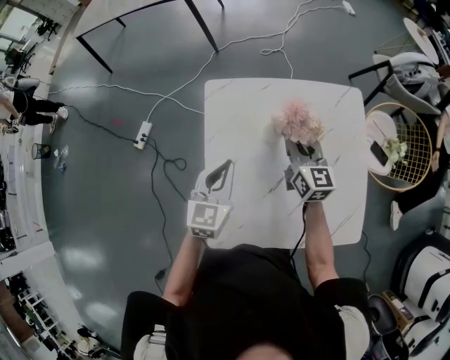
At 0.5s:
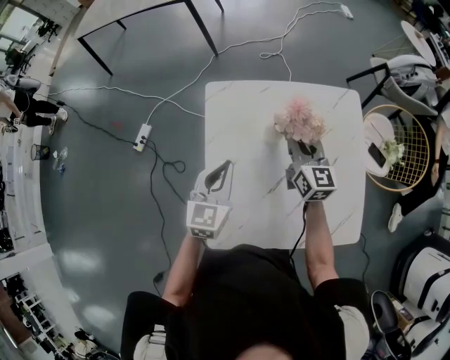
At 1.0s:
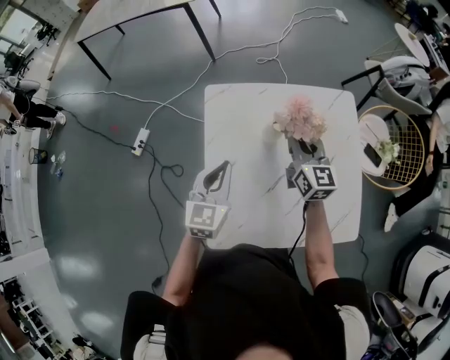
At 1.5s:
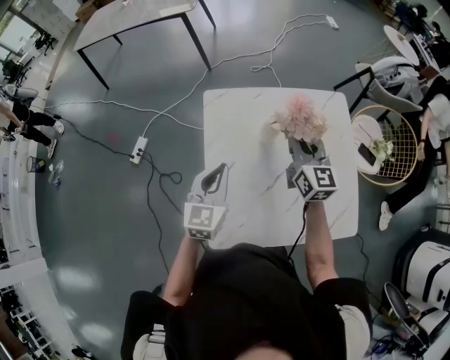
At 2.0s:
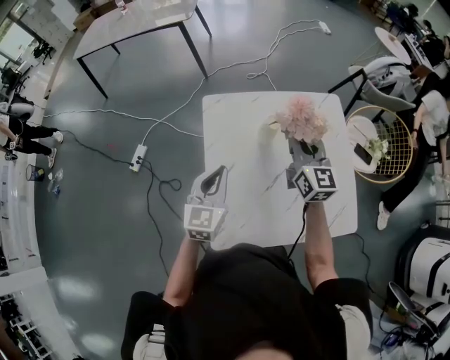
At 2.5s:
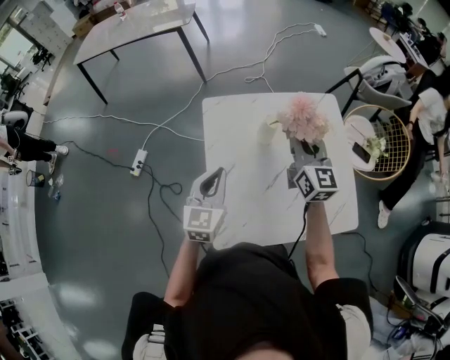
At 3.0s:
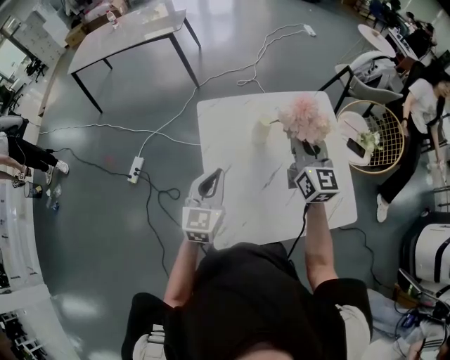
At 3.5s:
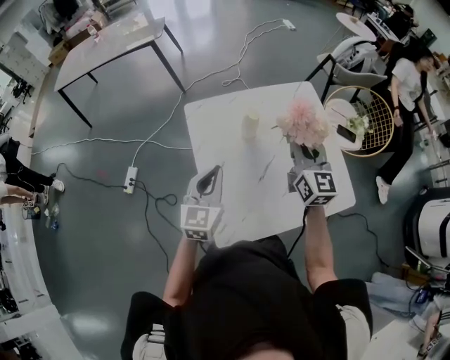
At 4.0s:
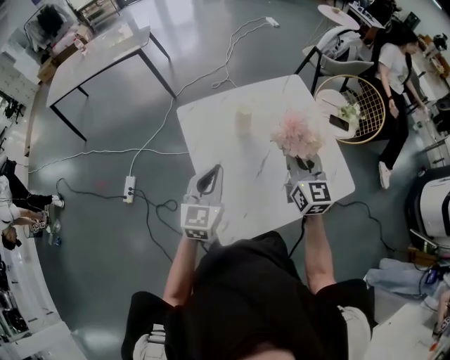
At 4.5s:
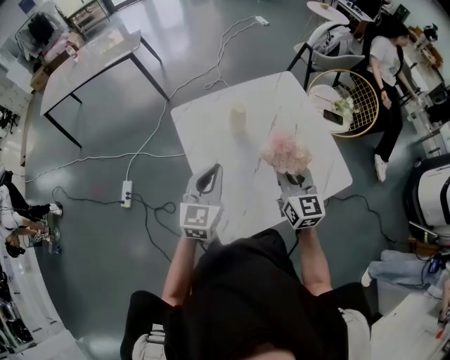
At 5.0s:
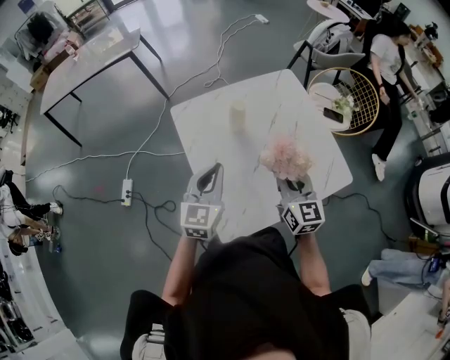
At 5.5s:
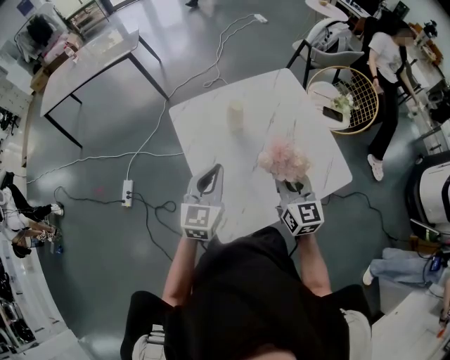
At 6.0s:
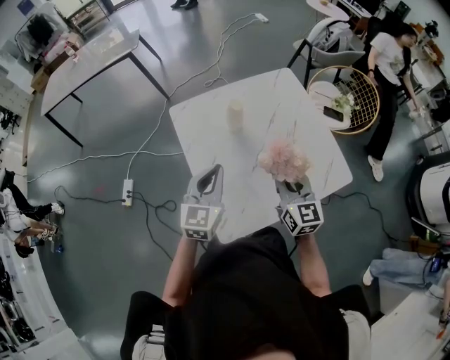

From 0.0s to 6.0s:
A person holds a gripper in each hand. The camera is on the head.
From 0.0s to 2.0s: The right gripper shifts roughly 15 cm upward and backward. The left gripper travels backward by approximately 5 cm.
From 2.0s to 4.0s: The left gripper goes approximately 5 cm backward, while the right gripper travels backward by some 15 cm.
From 4.0s to 6.0s: The right gripper goes roughly 10 cm backward.

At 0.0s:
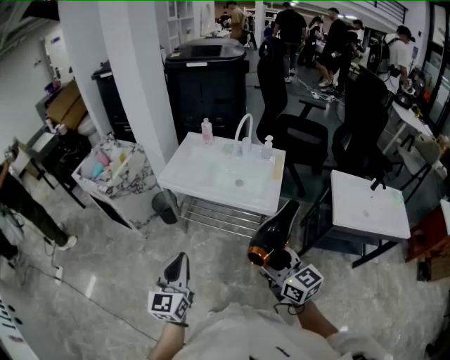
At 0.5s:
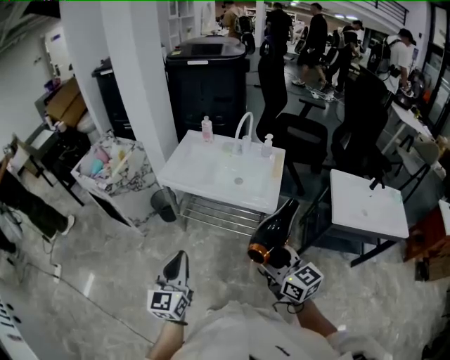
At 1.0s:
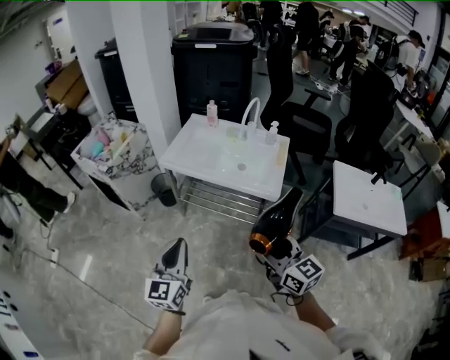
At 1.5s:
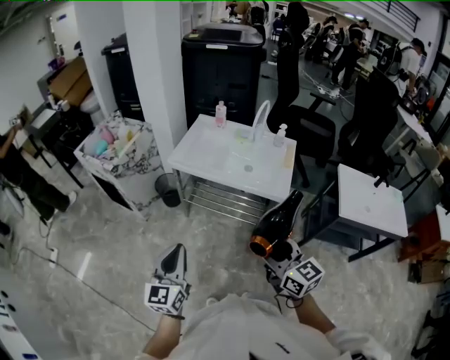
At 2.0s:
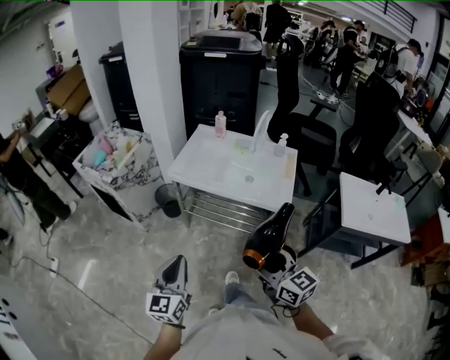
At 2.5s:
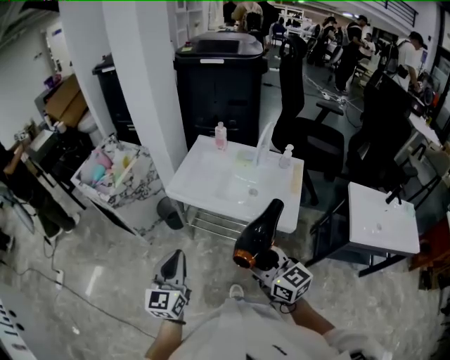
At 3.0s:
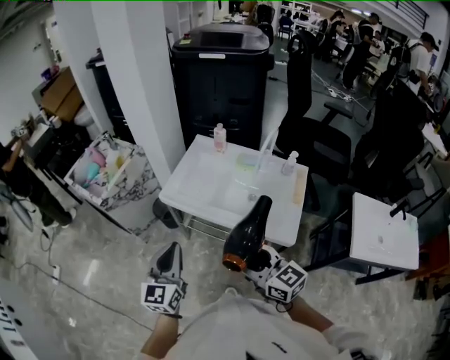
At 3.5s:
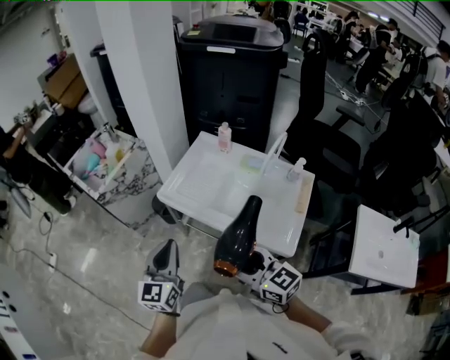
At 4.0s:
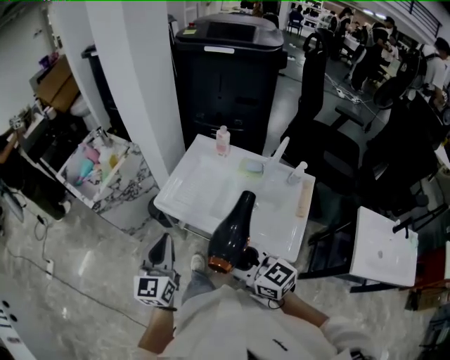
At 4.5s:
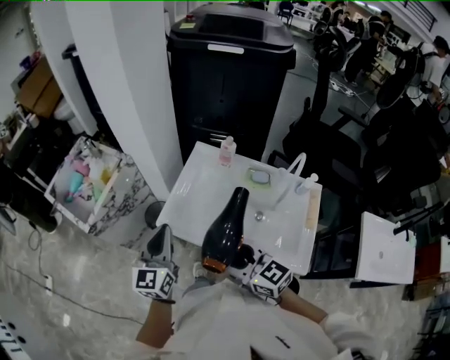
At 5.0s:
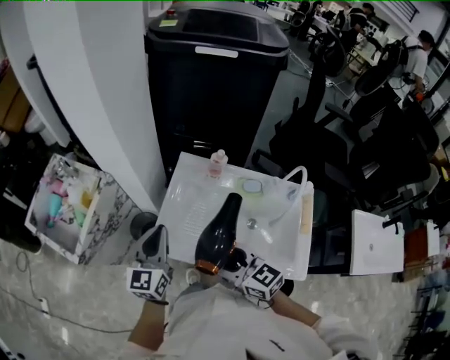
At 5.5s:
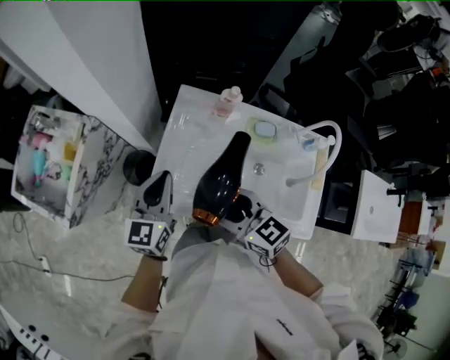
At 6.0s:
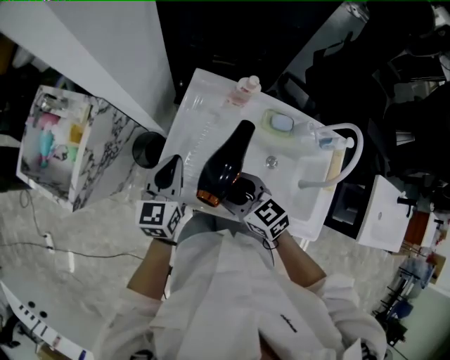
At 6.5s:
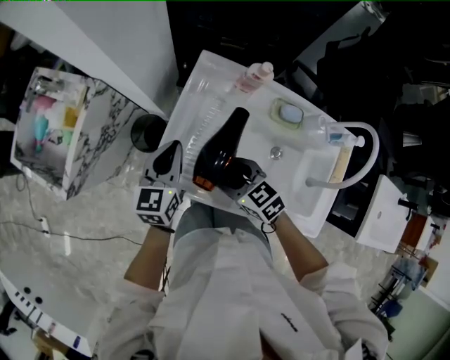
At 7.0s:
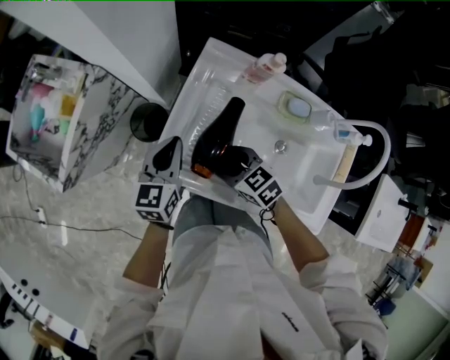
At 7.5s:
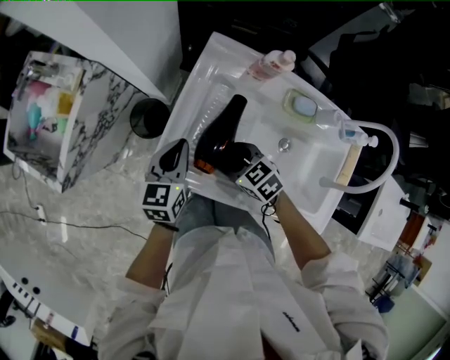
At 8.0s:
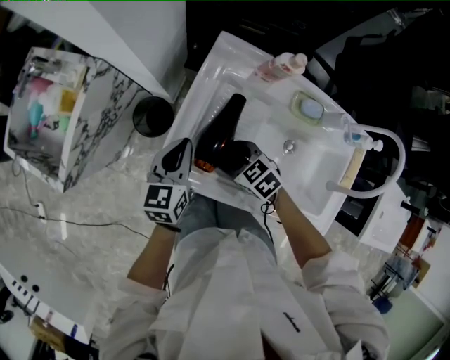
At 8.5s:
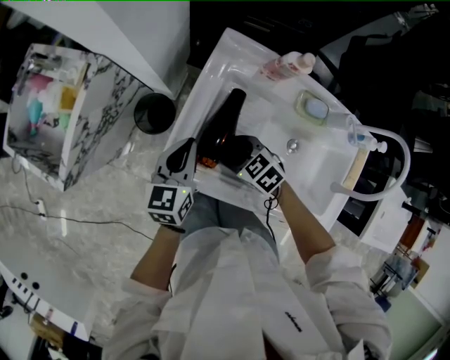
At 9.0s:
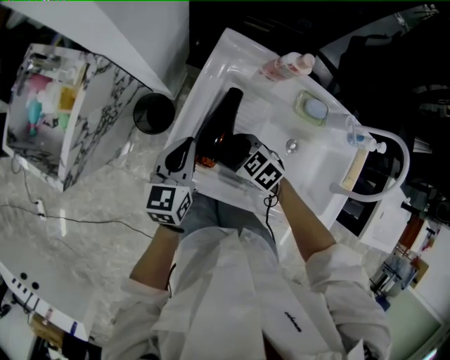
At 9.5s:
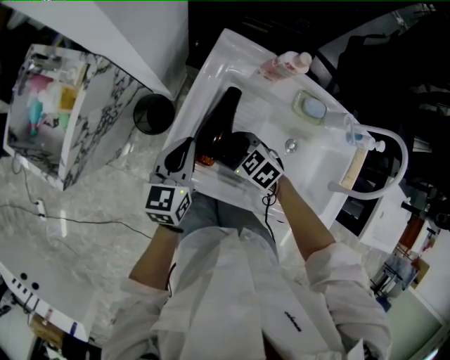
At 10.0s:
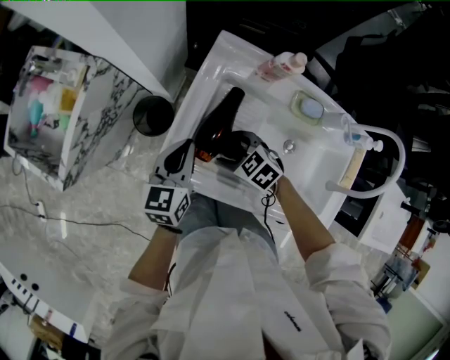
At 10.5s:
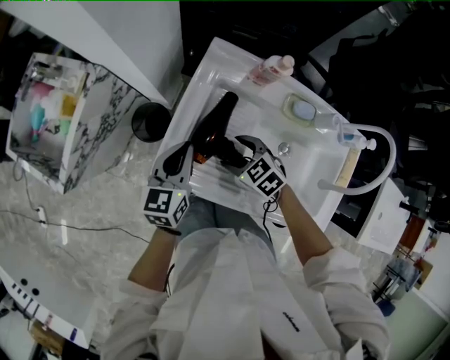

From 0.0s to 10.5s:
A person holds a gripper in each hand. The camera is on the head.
From 0.0s to 2.0s: Both grippers move to the left, approximately 10 cm.
From 2.0s to 4.0s: The grippers both shift forward by roughly 30 cm. The right gripper rotates some 20 degrees.
From 4.0s to 6.5s: Both grippers travel together forward and downward, approximately 40 cm. The right gripper angles its fingers downward, by approximately 30 degrees. Meanwhile the left gripper turns by some 20 degrees.
From 6.5s to 8.5s: The right gripper moves downward, roughly 10 cm; the left gripper shifts about 5 cm downward.
From 8.5s to 10.5s: There are only small adjustments of the grippers.

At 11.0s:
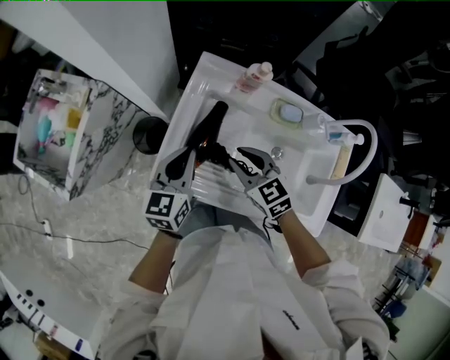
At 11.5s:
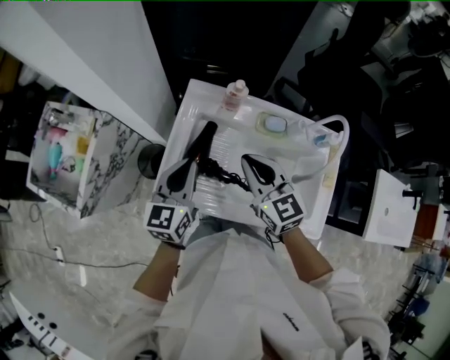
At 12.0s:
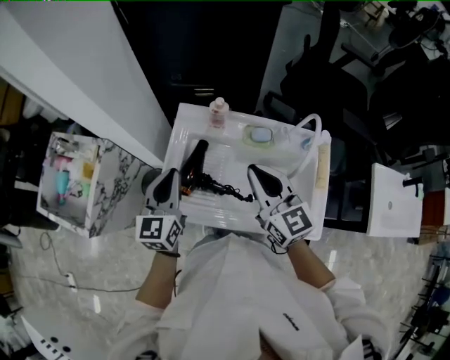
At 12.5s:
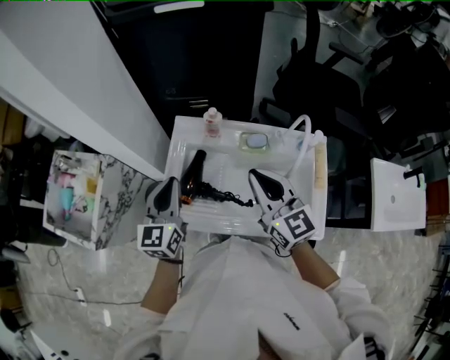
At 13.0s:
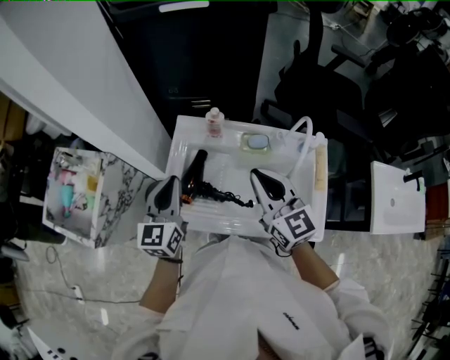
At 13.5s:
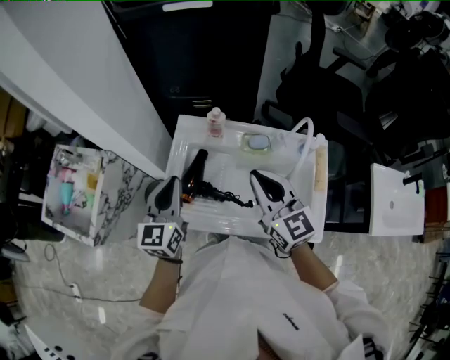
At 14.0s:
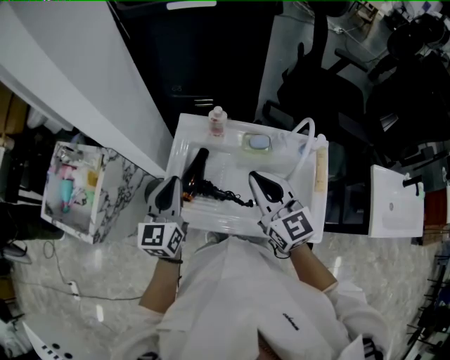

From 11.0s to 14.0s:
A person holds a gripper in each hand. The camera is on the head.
From 11.0s to 12.5s: The left gripper goes roughly 15 cm upward. Meanwhile the right gripper goes roughly 25 cm upward and to the right, and points its fingers some 30 degrees further upward.
From 12.5s to 14.0s: Both grippers stay put.

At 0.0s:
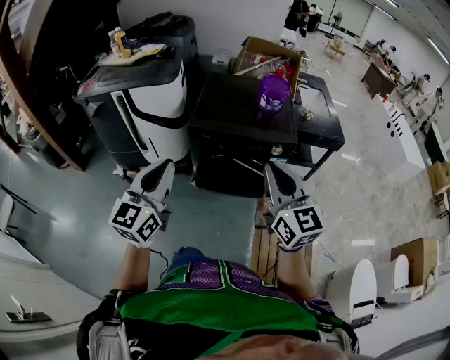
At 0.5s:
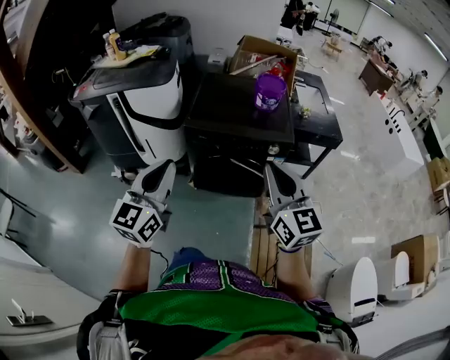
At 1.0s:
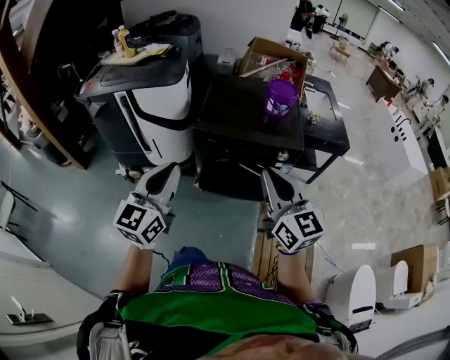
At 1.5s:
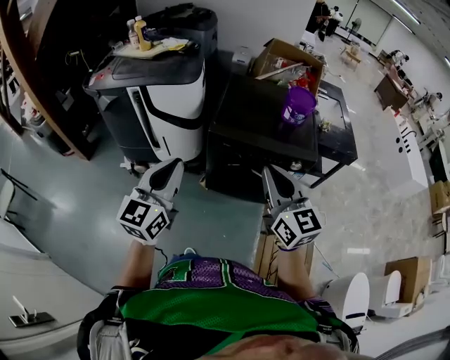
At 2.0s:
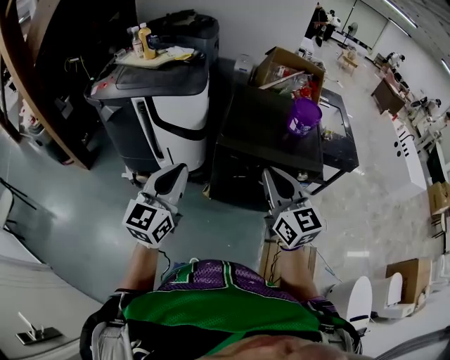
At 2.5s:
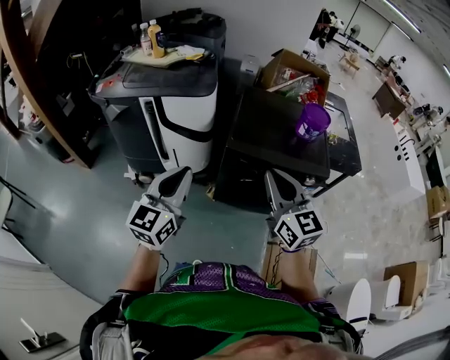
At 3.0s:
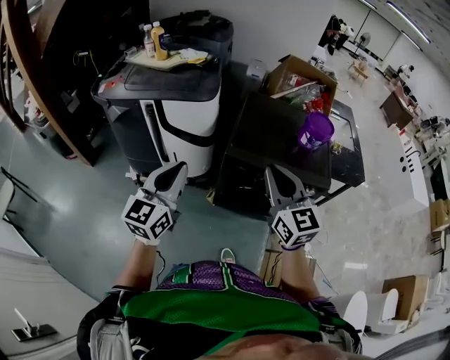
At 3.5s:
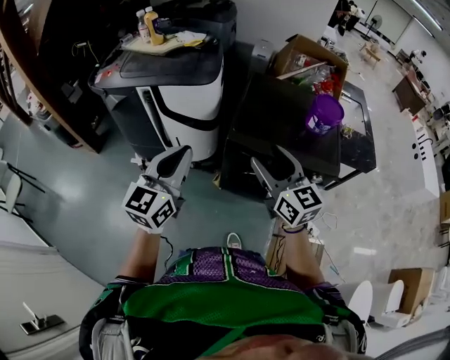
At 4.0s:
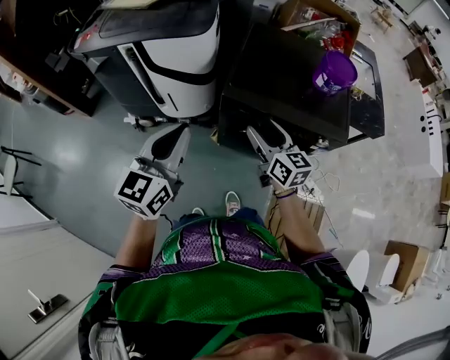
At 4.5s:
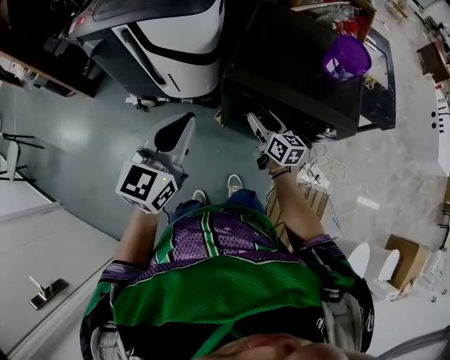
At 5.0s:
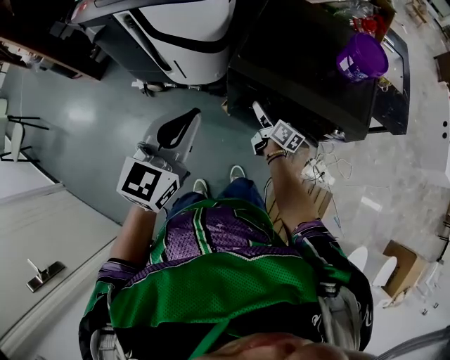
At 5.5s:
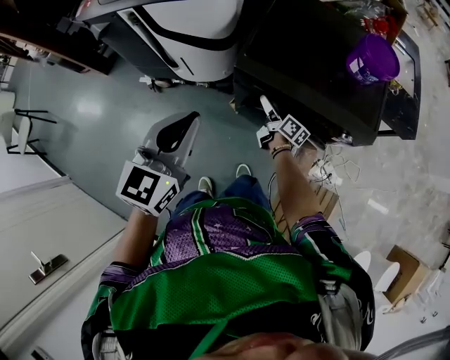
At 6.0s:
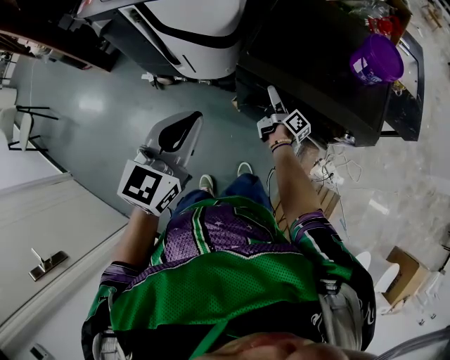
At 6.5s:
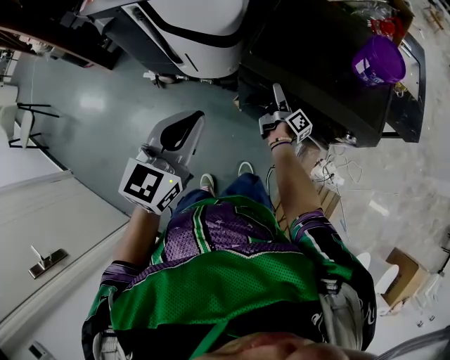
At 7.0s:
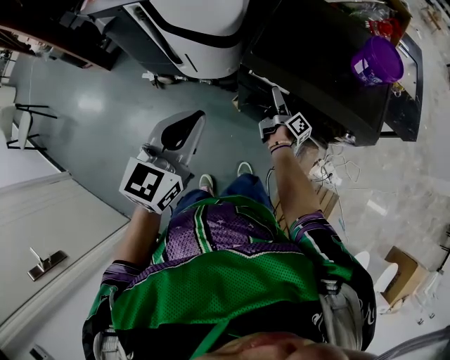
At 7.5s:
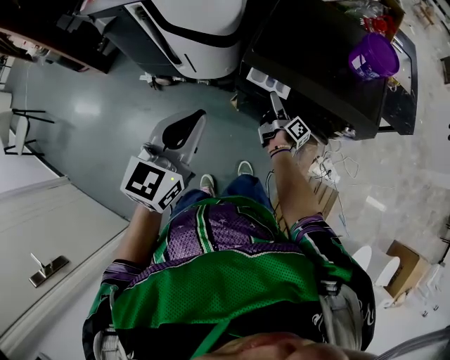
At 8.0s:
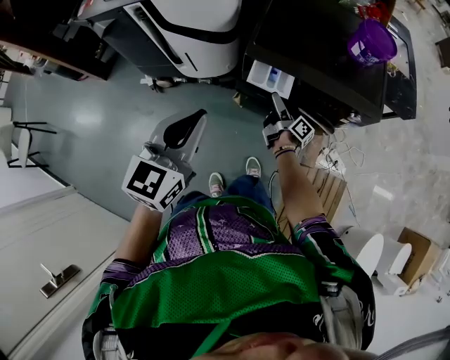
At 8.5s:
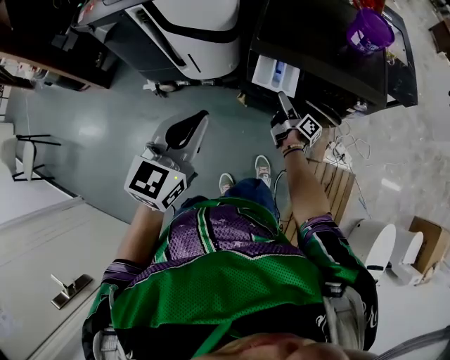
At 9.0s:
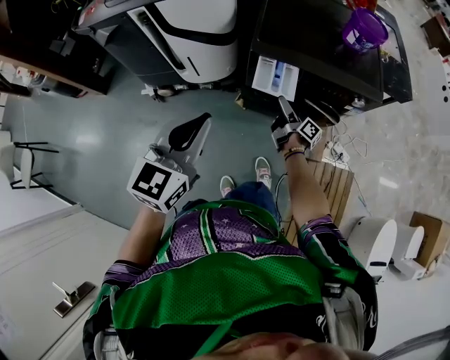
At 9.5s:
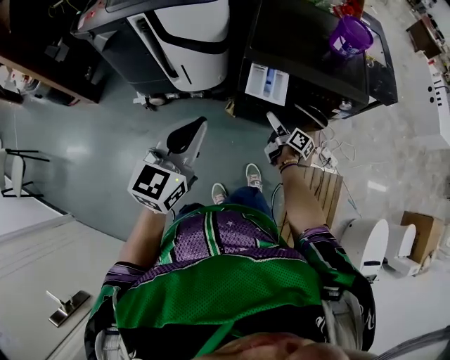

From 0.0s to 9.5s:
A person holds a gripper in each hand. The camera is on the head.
From 0.0s to 2.0s: The two grippers go approximately 20 cm to the left and forward.
From 2.0s to 4.0s: The left gripper goes some 10 cm forward and downward; the right gripper travels downward and forward by approximately 25 cm, changes its angle by some 20 degrees, and opens its fingers.
From 4.0s to 5.5s: The right gripper is displaced downward and forward by approximately 30 cm, and rolls clockwise, seen from behind, by some 40 degrees. The left gripper moves to the right, approximately 5 cm.
From 5.5s to 7.5s: The right gripper swivels roughly 20 degrees.
From 7.5s to 9.5s: The right gripper moves backward, some 15 cm; the left gripper travels backward and to the left by approximately 10 cm.
